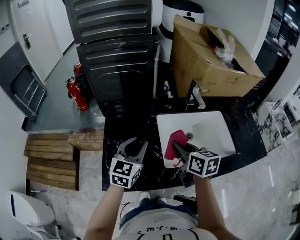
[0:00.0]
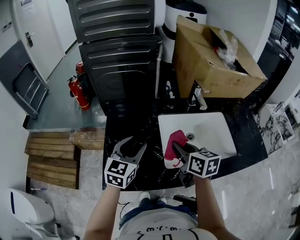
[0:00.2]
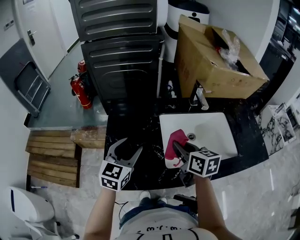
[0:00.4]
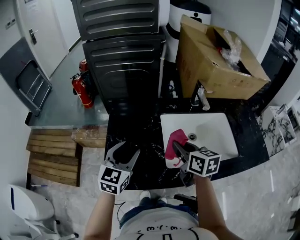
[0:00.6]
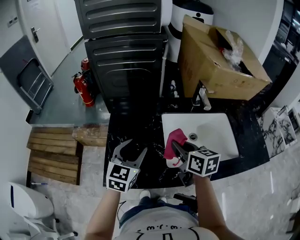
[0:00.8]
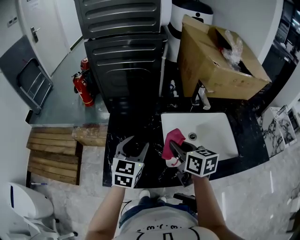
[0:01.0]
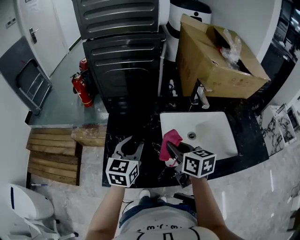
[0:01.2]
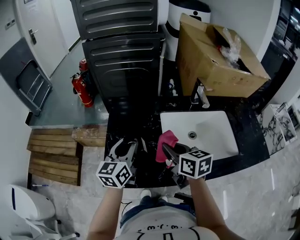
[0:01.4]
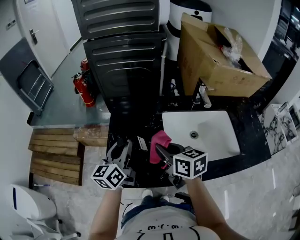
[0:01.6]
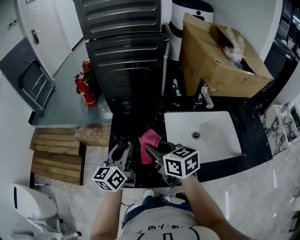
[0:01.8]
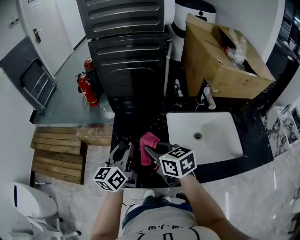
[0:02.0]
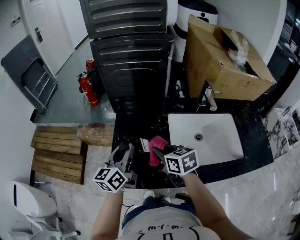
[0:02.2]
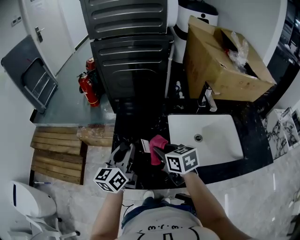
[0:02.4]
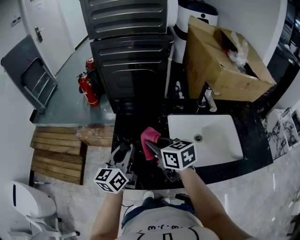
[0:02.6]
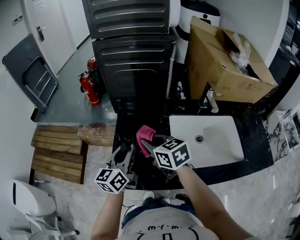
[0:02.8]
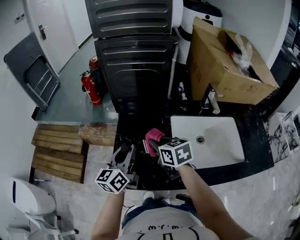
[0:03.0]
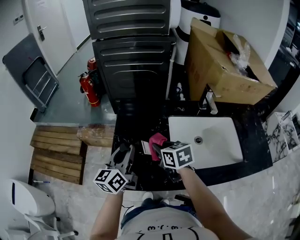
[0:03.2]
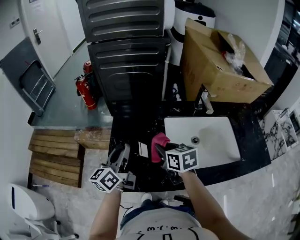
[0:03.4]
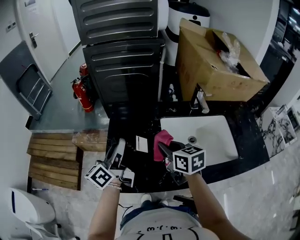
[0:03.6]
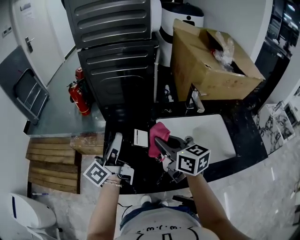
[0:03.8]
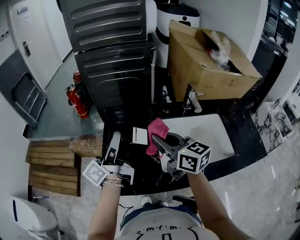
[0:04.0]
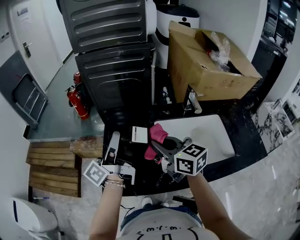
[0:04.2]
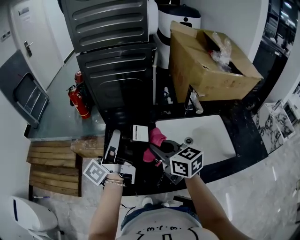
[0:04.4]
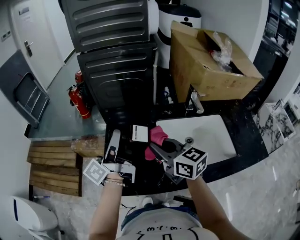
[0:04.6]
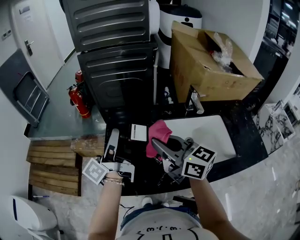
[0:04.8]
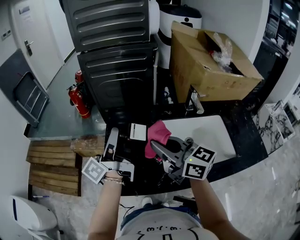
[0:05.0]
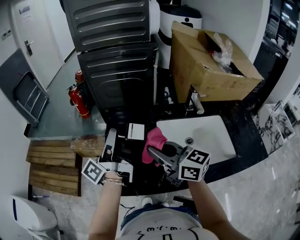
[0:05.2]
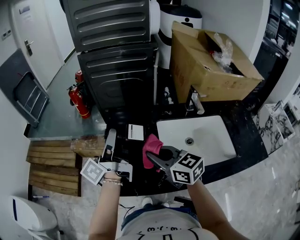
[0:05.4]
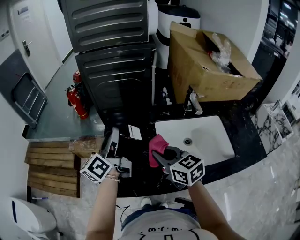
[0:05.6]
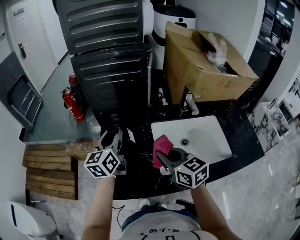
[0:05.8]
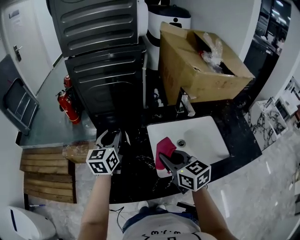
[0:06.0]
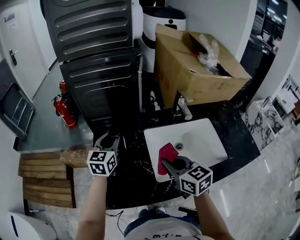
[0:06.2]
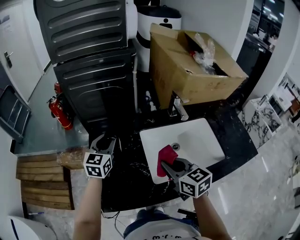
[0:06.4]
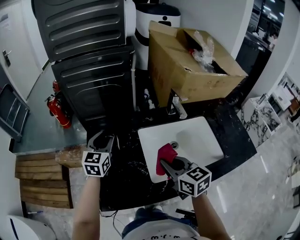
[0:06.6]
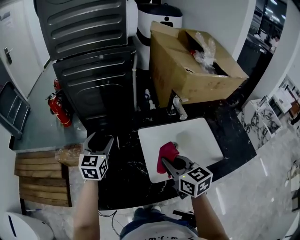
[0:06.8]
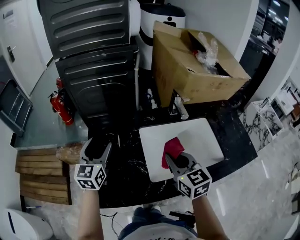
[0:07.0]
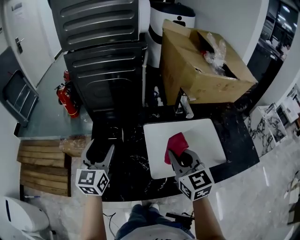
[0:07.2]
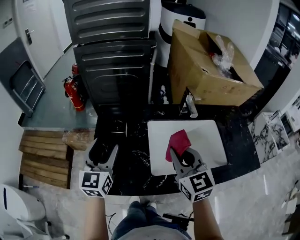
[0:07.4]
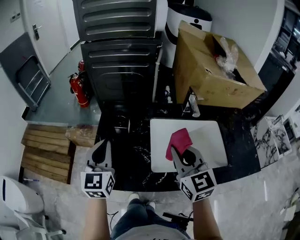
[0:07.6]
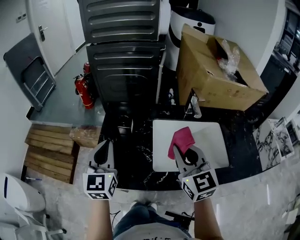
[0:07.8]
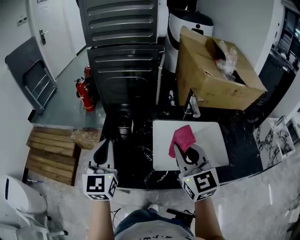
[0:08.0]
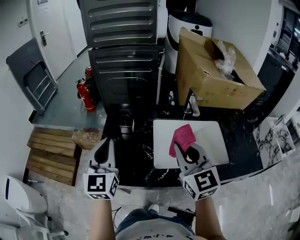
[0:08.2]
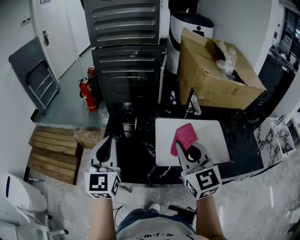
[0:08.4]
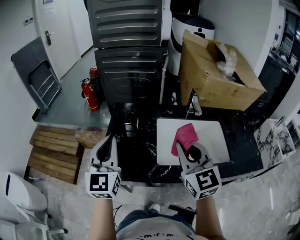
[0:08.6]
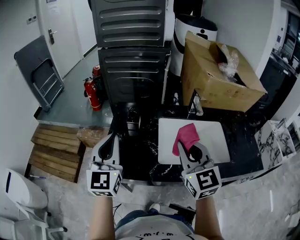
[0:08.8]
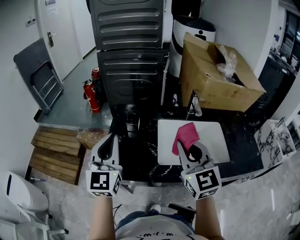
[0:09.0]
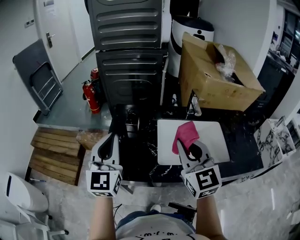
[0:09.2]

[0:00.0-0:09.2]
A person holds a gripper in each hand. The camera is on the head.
0:00.0 to 0:01.6: The two grippers go roughly 10 cm to the left. The left gripper turns by about 30 degrees, and opens and closes again.
0:01.6 to 0:03.0: The right gripper goes some 5 cm forward.
0:03.0 to 0:04.6: The grippers both shift upward by approximately 10 cm. The right gripper rotates approximately 20 degrees. The left gripper rotates about 50 degrees.
0:04.6 to 0:06.2: The right gripper goes roughly 10 cm to the right and downward, and swivels roughly 20 degrees; the left gripper travels downward, forward and to the right by roughly 15 cm, and rotates around the line of its fingers by about 60 degrees, clockwise from behind.
0:06.2 to 0:07.6: The left gripper travels backward by about 15 cm, swivels approximately 20 degrees, and opens and closes again, while the right gripper moves upward, approximately 5 cm, and rotates approximately 20 degrees.
0:07.6 to 0:09.2: The grippers both shift upward and backward by roughly 10 cm.

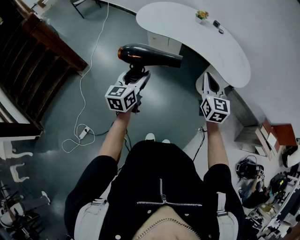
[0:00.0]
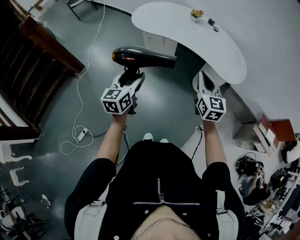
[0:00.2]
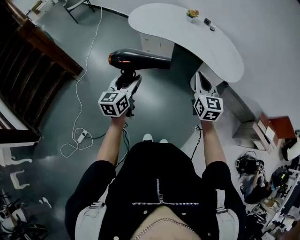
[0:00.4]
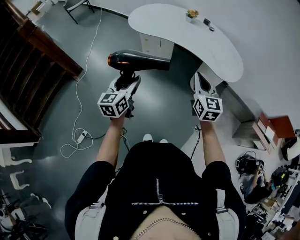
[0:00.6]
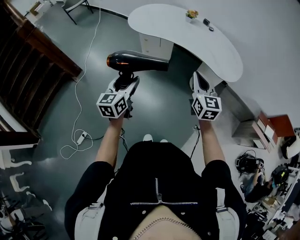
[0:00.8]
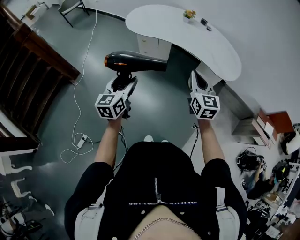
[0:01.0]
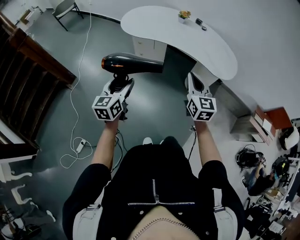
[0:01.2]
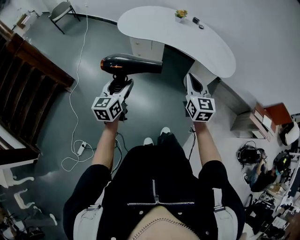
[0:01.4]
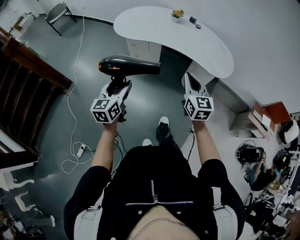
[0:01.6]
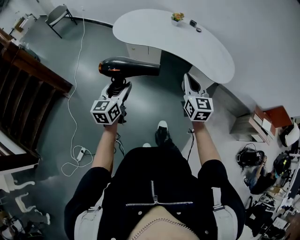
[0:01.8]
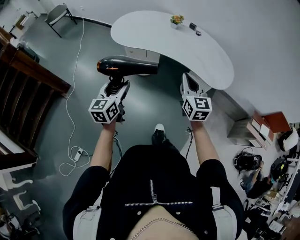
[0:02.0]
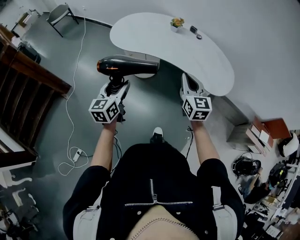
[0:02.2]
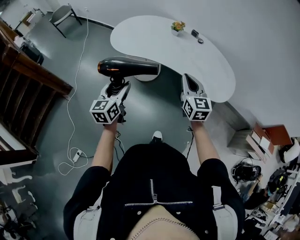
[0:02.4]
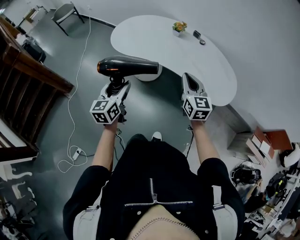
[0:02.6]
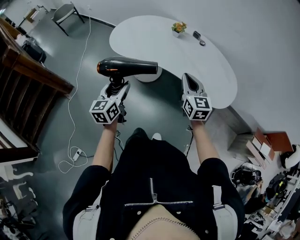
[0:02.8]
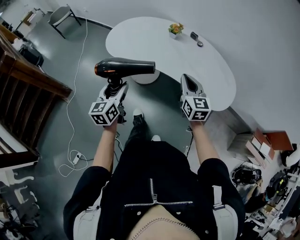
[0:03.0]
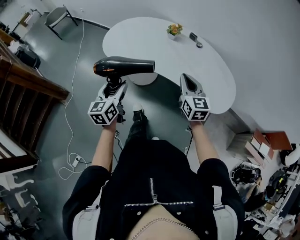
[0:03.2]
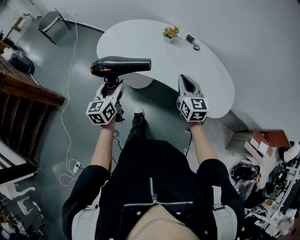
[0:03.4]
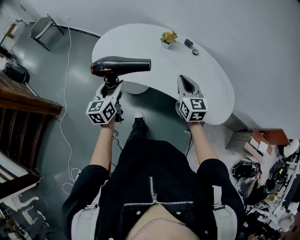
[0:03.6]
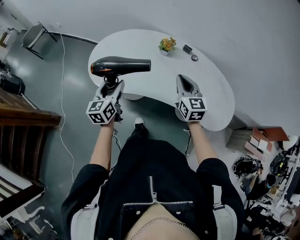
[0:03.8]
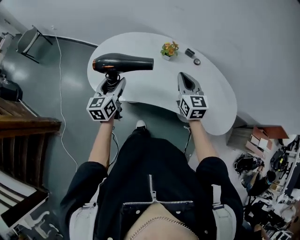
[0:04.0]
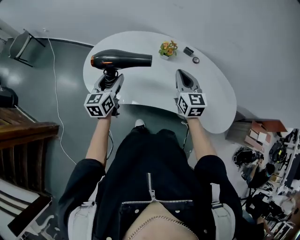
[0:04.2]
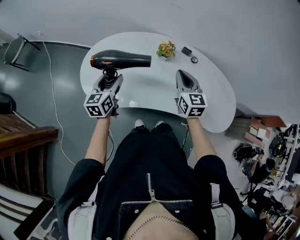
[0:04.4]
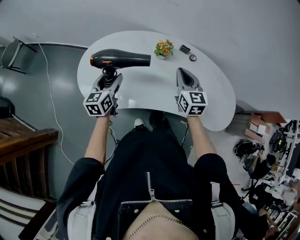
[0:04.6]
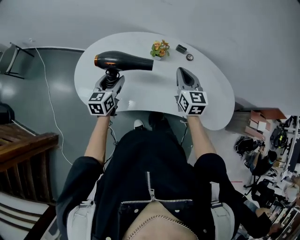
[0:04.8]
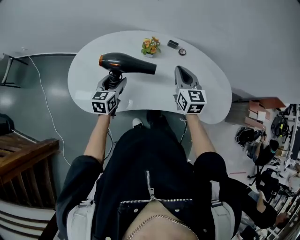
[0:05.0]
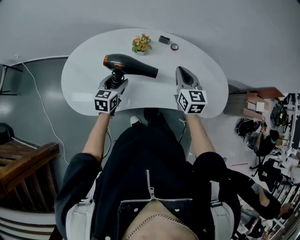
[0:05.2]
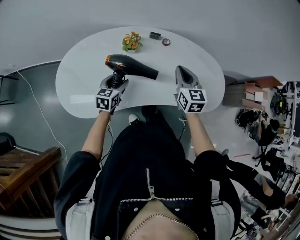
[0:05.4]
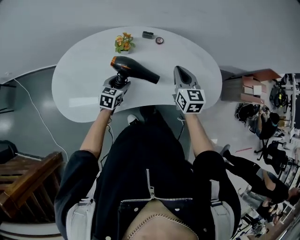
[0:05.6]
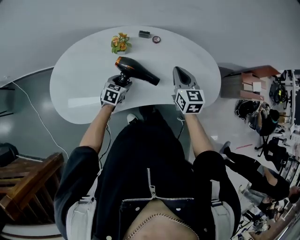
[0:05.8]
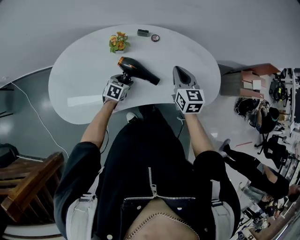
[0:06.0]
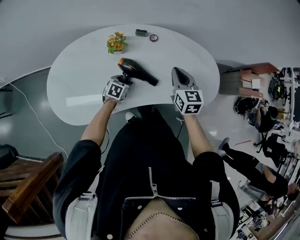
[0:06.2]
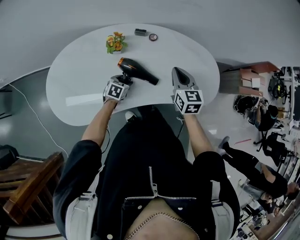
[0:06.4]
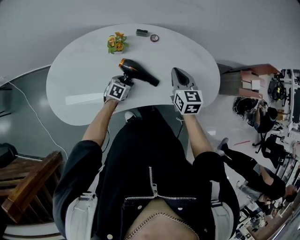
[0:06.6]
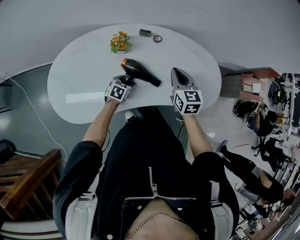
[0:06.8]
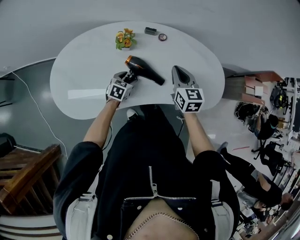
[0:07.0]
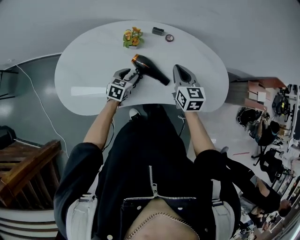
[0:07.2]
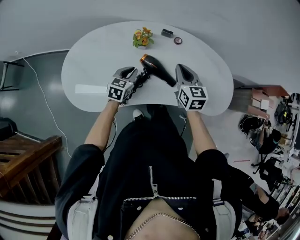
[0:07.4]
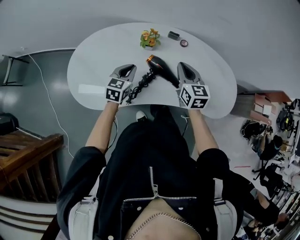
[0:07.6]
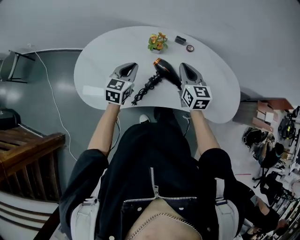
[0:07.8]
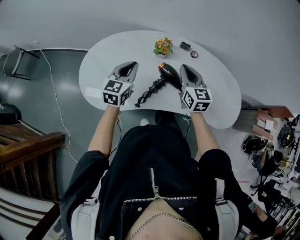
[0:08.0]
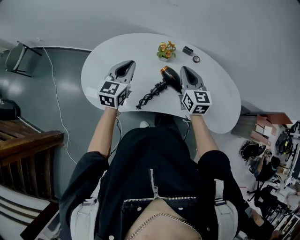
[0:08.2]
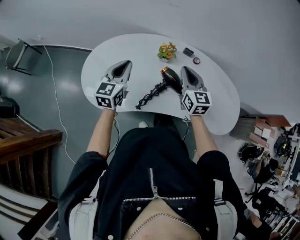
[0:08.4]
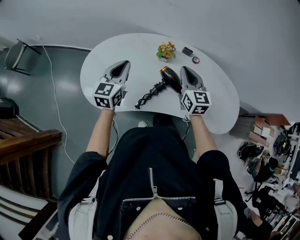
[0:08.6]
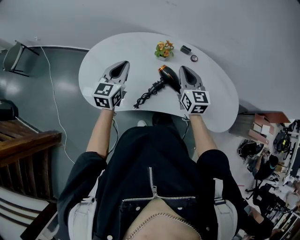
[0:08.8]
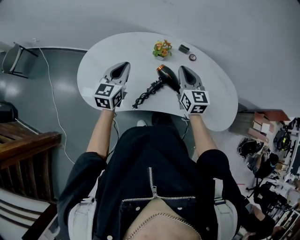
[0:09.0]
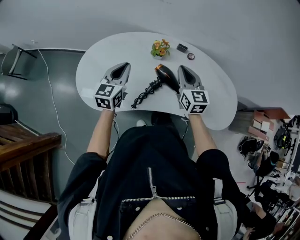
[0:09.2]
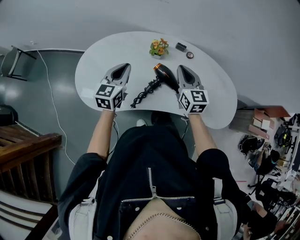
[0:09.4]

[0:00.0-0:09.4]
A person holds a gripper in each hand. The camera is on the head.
0:00.0 to 0:01.6: The grippers move only a little.
0:01.6 to 0:03.2: Both grippers travel together forward, approximately 25 cm.
0:03.2 to 0:04.8: The two grippers go about 35 cm forward. The right gripper rotates some 20 degrees, while the left gripper rotates about 30 degrees.
0:04.8 to 0:06.2: The right gripper shifts by approximately 15 cm. The left gripper moves downward, some 20 cm, and angles its fingers downward, by roughly 30 degrees.
0:06.2 to 0:07.8: The left gripper heads upward and to the left, covering about 25 cm, tilts its fingers about 30 degrees upward, and closes up; the right gripper moves to the left, roughly 15 cm.
0:07.8 to 0:09.4: The left gripper travels upward by about 5 cm.

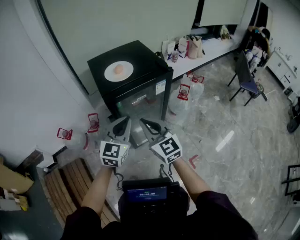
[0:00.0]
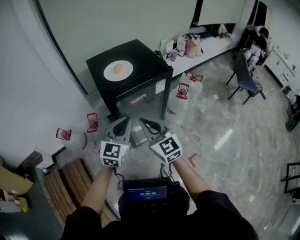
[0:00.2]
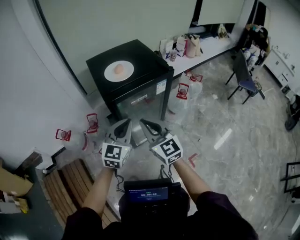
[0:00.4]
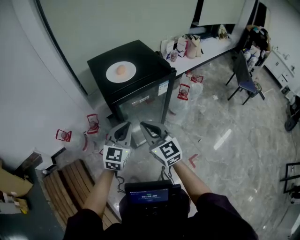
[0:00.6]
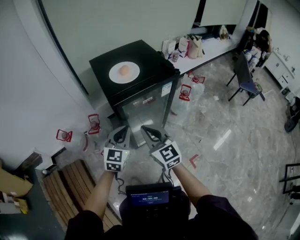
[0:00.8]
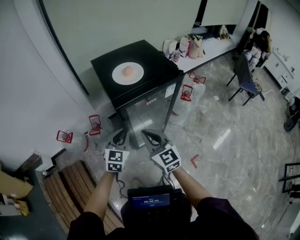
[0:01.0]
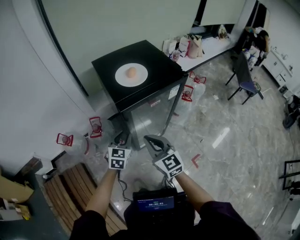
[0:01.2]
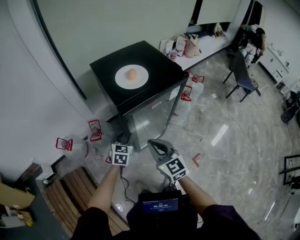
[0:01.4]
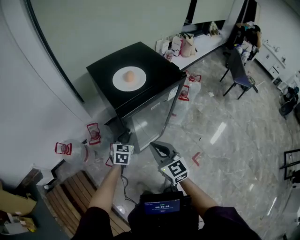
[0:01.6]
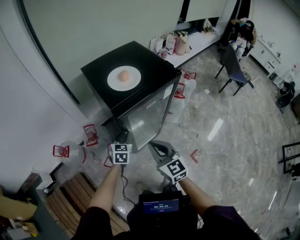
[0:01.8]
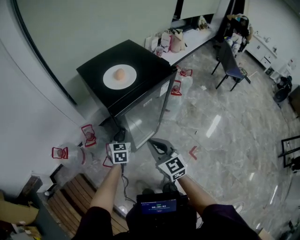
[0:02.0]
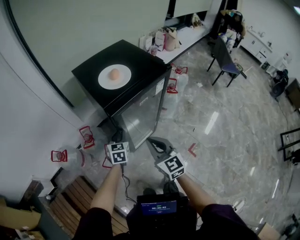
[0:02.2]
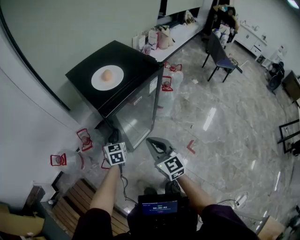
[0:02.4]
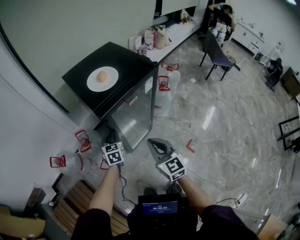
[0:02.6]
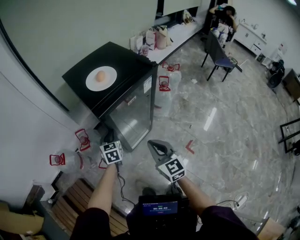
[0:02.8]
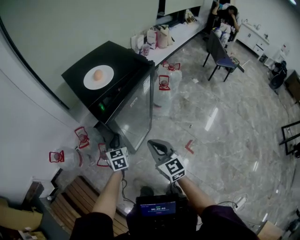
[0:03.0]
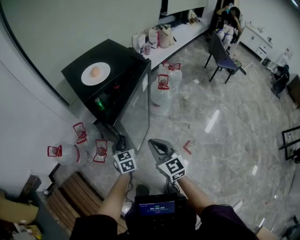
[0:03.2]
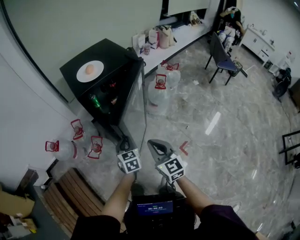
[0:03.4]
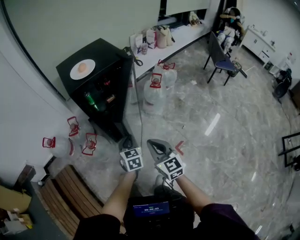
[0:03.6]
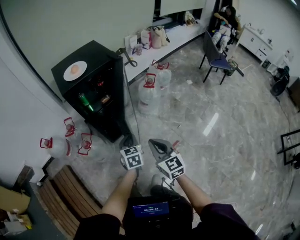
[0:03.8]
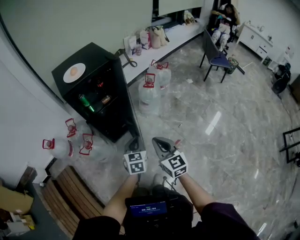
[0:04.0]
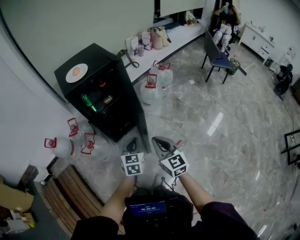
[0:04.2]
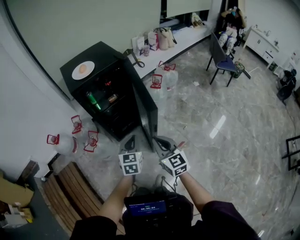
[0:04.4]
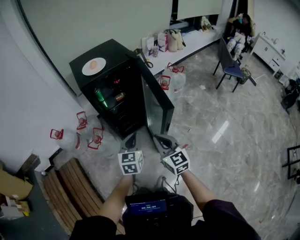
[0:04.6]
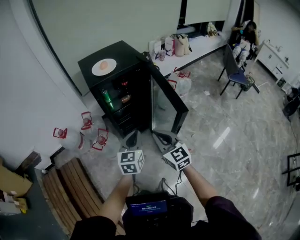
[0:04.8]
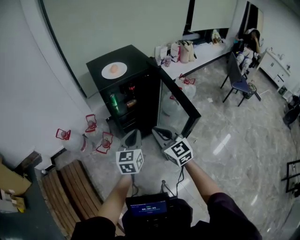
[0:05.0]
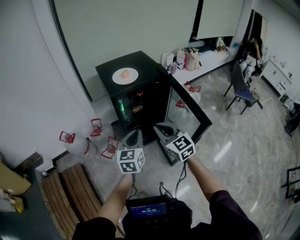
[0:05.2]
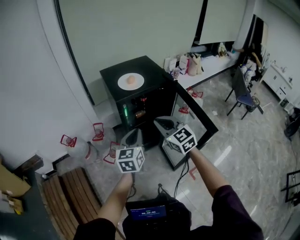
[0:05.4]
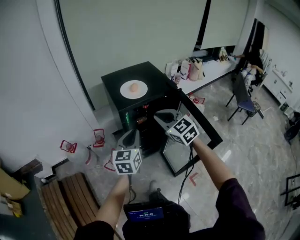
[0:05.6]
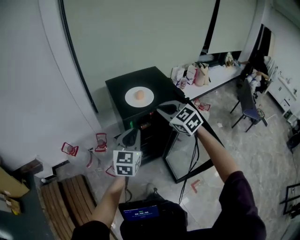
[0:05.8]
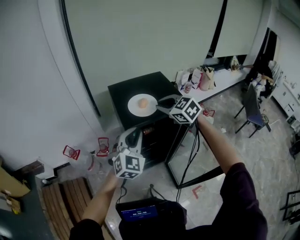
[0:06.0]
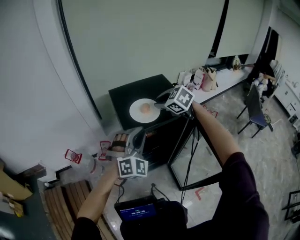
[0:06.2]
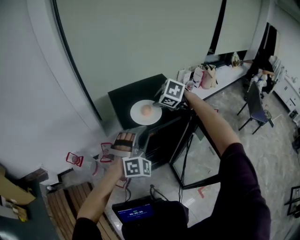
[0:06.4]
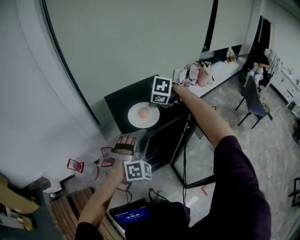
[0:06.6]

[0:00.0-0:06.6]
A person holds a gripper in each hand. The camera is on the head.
0:00.0 to 0:01.6: The right gripper is displaced downward and to the left by approximately 10 cm, while the left gripper shifts approximately 25 cm downward, to the left and forward, and swivels some 30 degrees.
0:01.6 to 0:03.2: The left gripper moves backward and to the right, roughly 15 cm, while the right gripper travels to the right and backward by roughly 15 cm.
0:03.2 to 0:05.0: The left gripper shifts about 20 cm upward and backward, and moves roughly 20 cm to the right and comes back. Meanwhile the right gripper goes approximately 5 cm upward, and moves about 15 cm to the right and comes back.
0:05.0 to 0:06.6: The right gripper travels forward by roughly 50 cm, and tilts its fingers roughly 60 degrees downward. The left gripper is displaced forward by approximately 25 cm, and rolls clockwise, seen from behind, by approximately 80 degrees.
